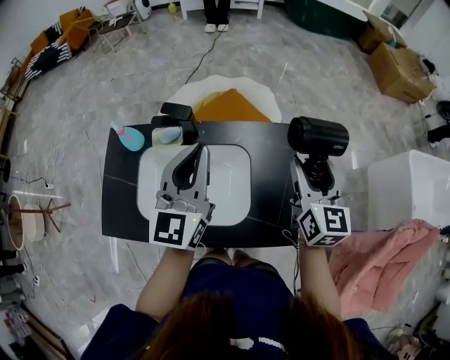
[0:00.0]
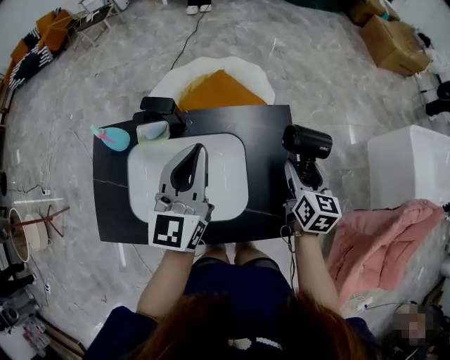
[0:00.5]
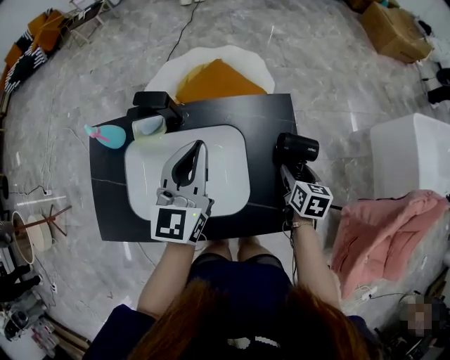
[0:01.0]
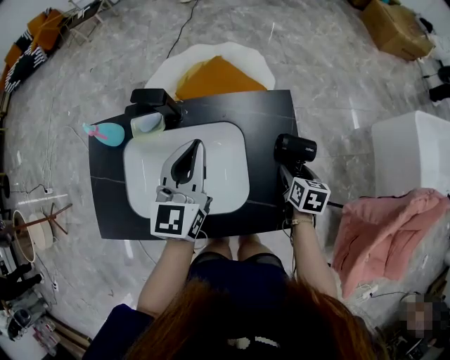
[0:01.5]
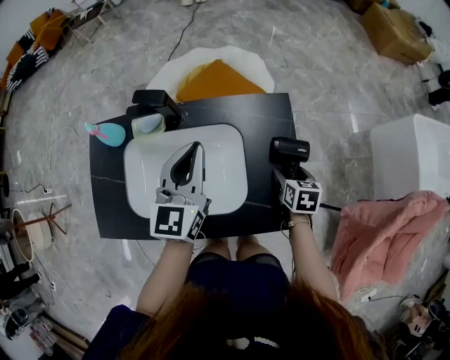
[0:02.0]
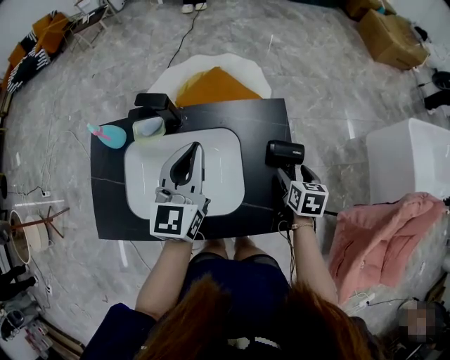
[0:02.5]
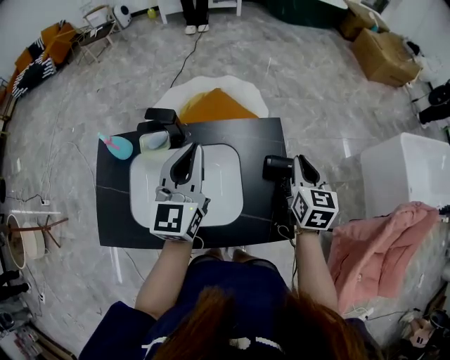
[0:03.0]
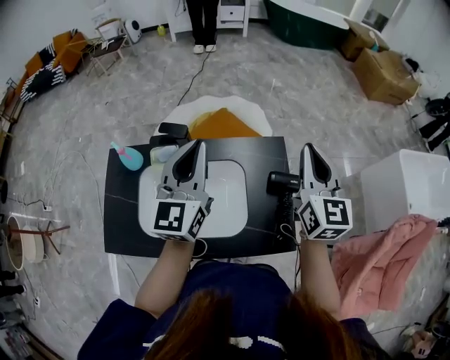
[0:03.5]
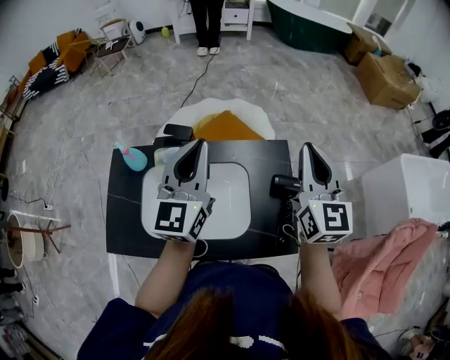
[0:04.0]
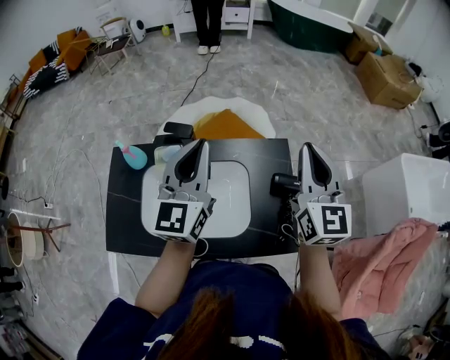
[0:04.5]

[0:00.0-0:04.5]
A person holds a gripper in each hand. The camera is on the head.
0:00.0 to 0:02.0: The right gripper is displaced downward by approximately 30 cm, and angles its fingers downward, by some 40 degrees. Meanwhile the left gripper travels downward by approximately 10 cm.
0:02.0 to 0:04.5: The left gripper is displaced upward by about 15 cm. Meanwhile the right gripper heads upward, covering some 40 cm, tips its fingers upward by about 60 degrees, and closes up.

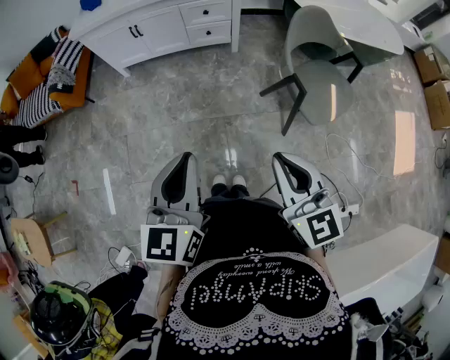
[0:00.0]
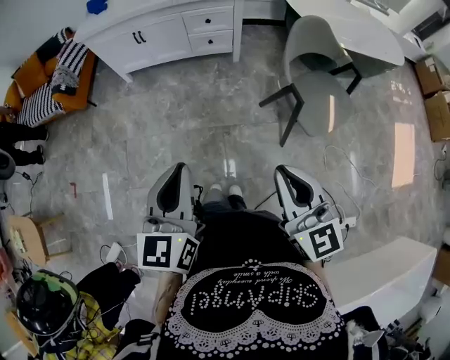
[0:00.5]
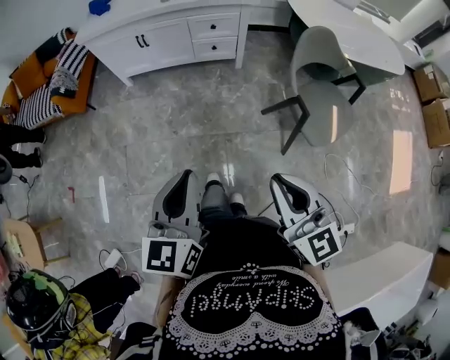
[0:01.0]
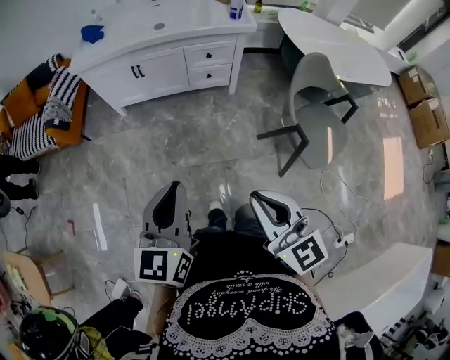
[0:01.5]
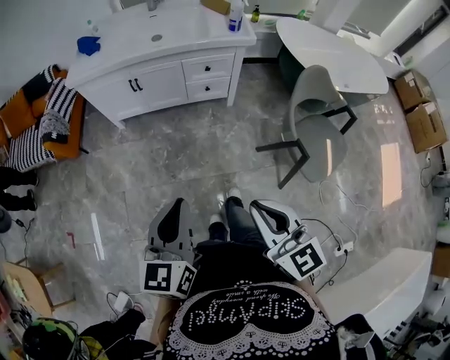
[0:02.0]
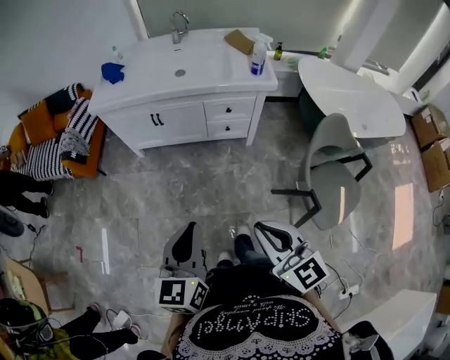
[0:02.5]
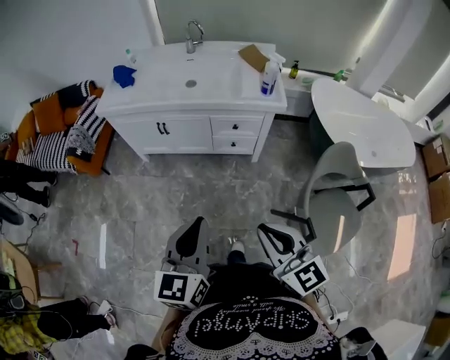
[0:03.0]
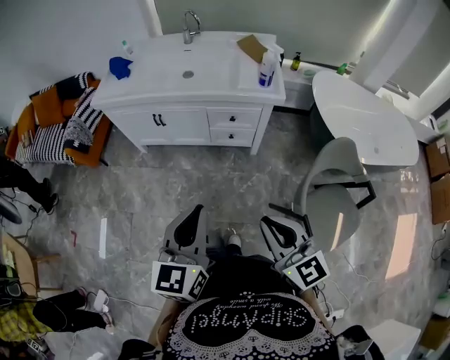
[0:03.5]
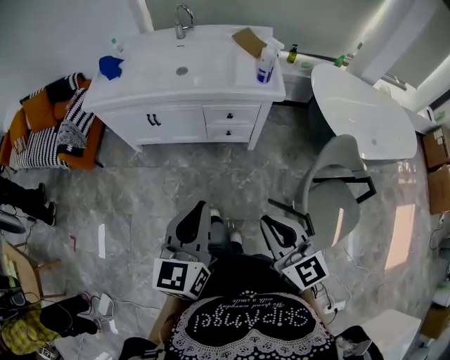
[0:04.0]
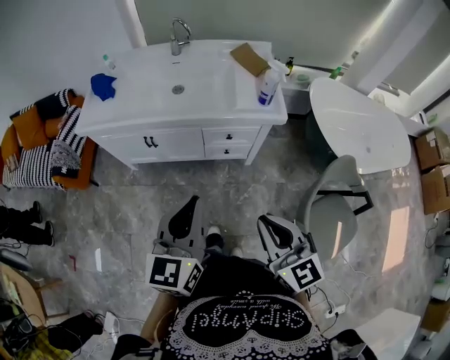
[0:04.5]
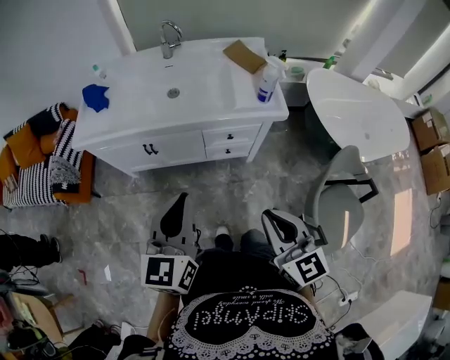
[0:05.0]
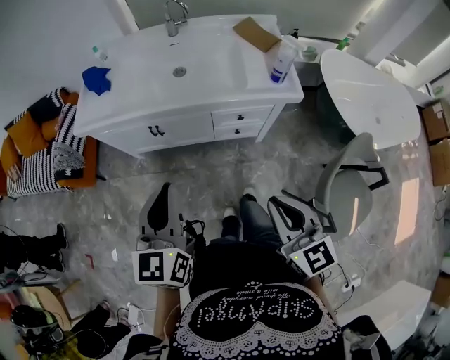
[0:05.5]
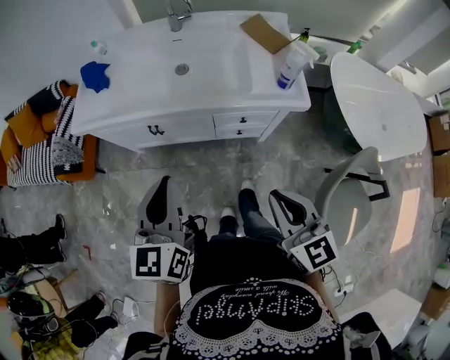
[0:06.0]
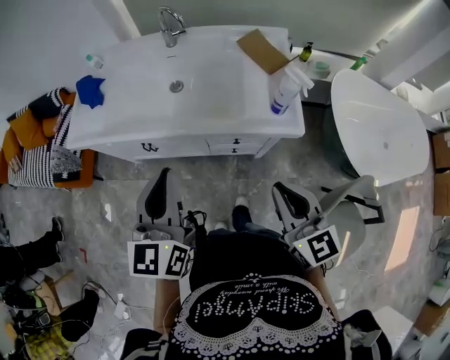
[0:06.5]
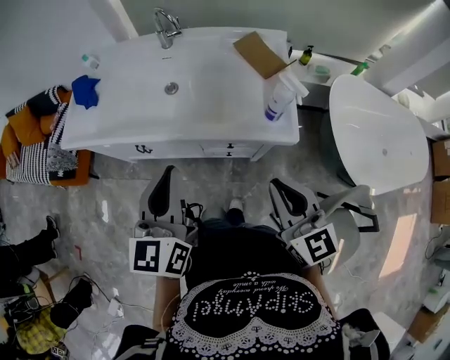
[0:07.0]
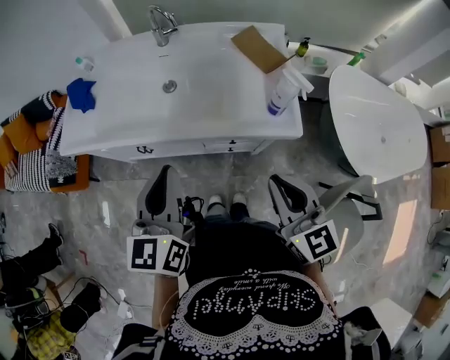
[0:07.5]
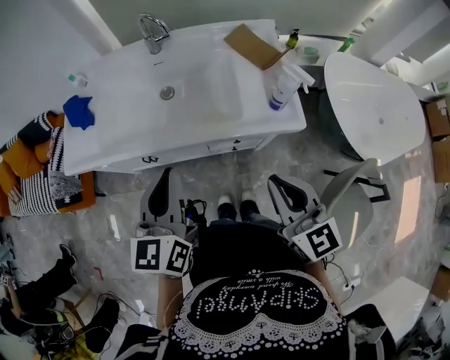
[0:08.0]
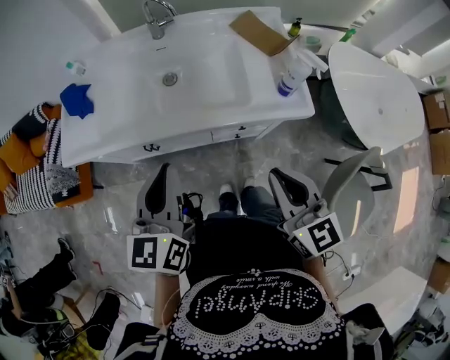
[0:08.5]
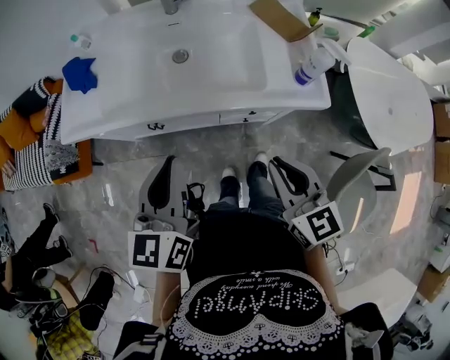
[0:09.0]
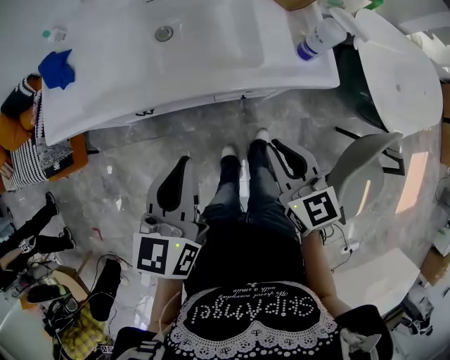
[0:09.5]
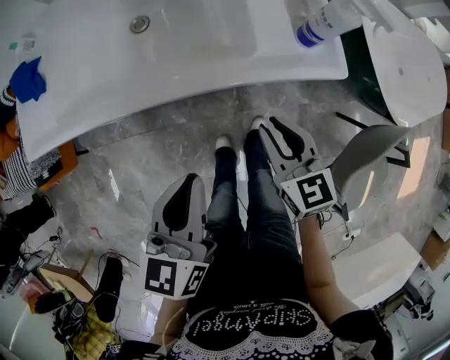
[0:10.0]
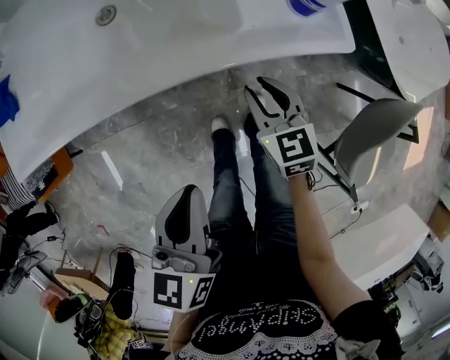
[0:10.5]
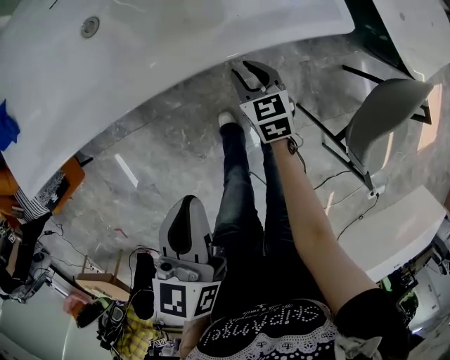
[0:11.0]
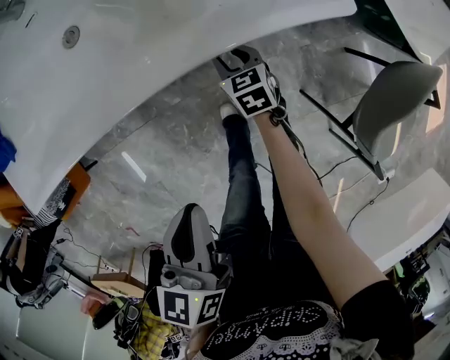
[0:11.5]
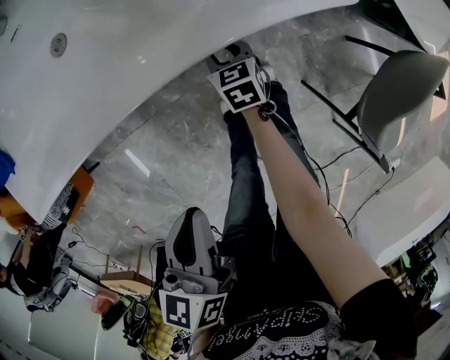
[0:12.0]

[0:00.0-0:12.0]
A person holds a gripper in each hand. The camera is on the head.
0:00.0 to 0:02.0: The two grippers go roughly 15 cm forward and to the left.
0:02.0 to 0:04.0: The grippers both shift forward and to the right by approximately 20 cm.
0:04.0 to 0:06.0: The left gripper travels forward and to the left by about 25 cm. Meanwhile the right gripper shifts approximately 20 cm forward.
0:06.0 to 0:08.0: The left gripper heads forward and to the right, covering approximately 15 cm. The right gripper travels forward by about 15 cm.
0:08.0 to 0:10.0: The grippers both shift downward by about 15 cm. The left gripper turns by about 20 degrees.
0:10.0 to 0:12.0: The right gripper moves downward, some 30 cm, and turns by some 20 degrees. The left gripper shifts approximately 10 cm downward.

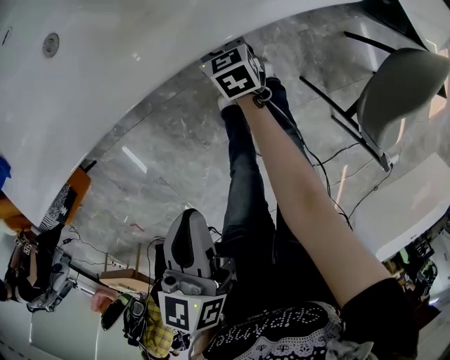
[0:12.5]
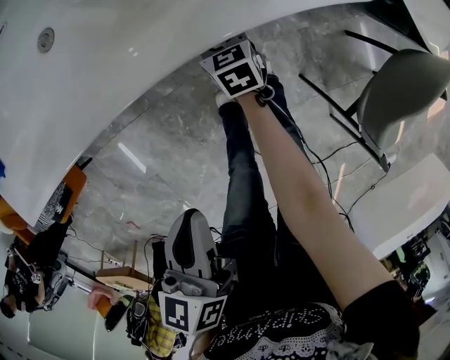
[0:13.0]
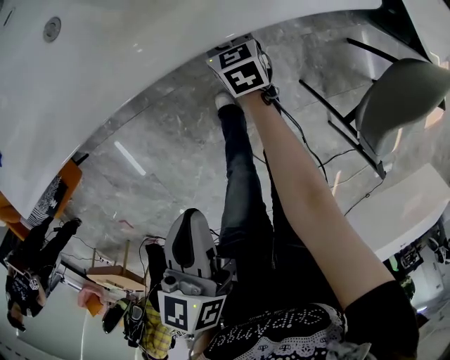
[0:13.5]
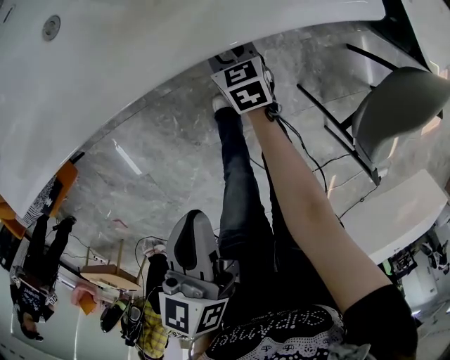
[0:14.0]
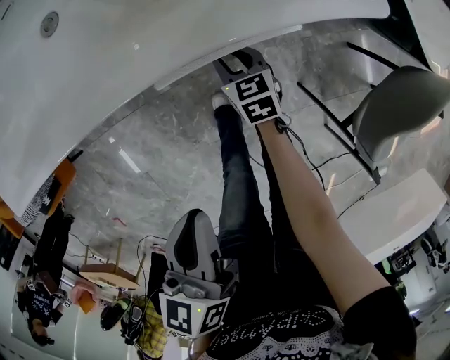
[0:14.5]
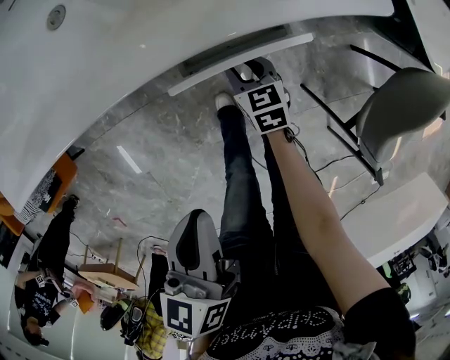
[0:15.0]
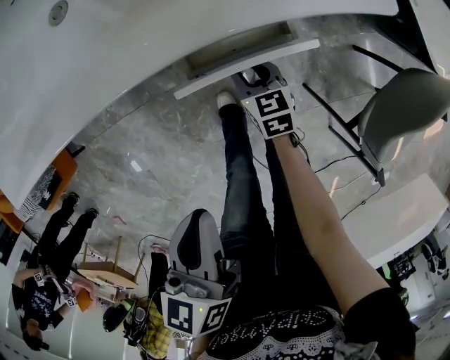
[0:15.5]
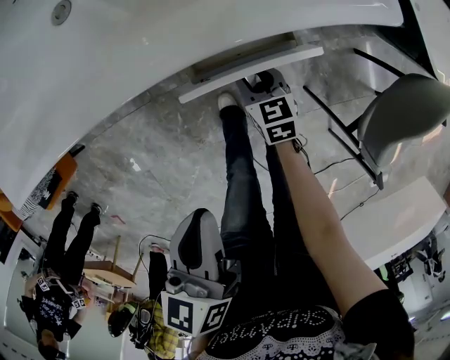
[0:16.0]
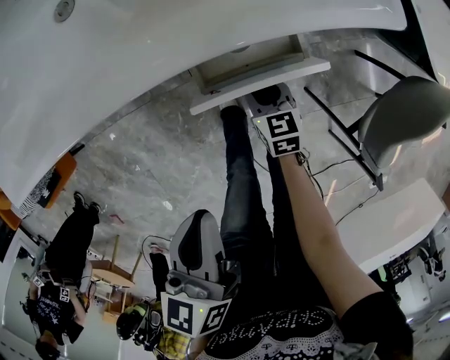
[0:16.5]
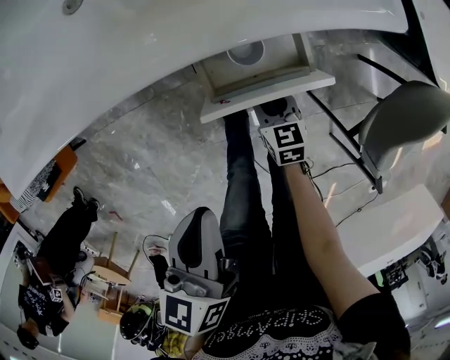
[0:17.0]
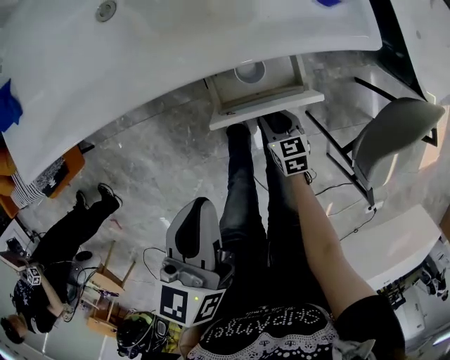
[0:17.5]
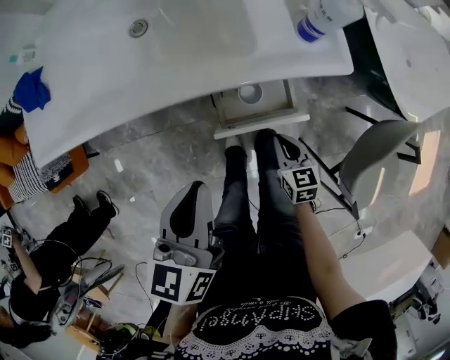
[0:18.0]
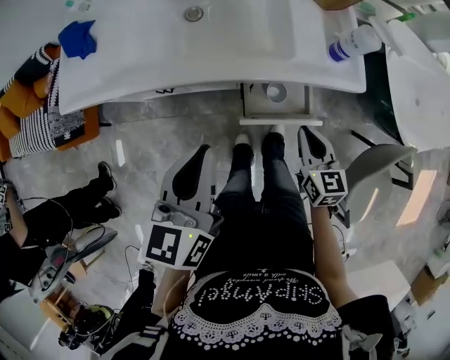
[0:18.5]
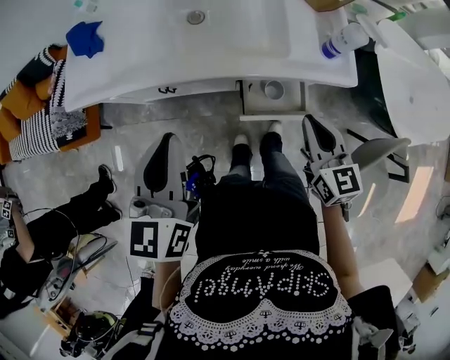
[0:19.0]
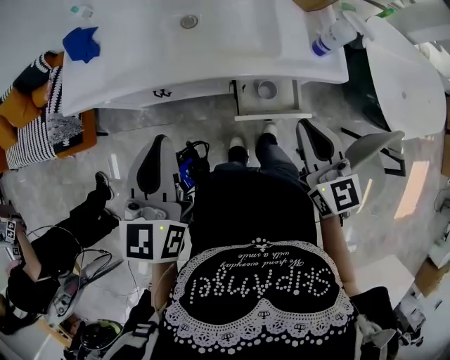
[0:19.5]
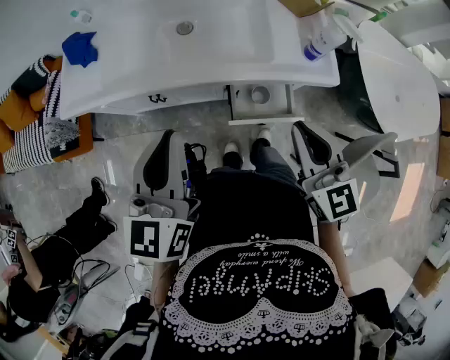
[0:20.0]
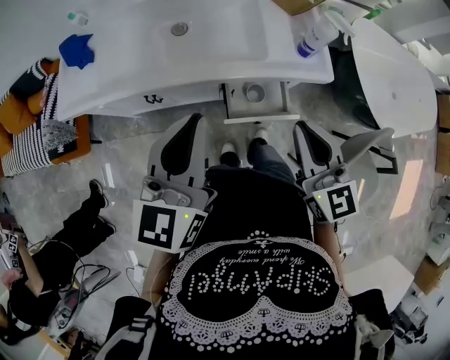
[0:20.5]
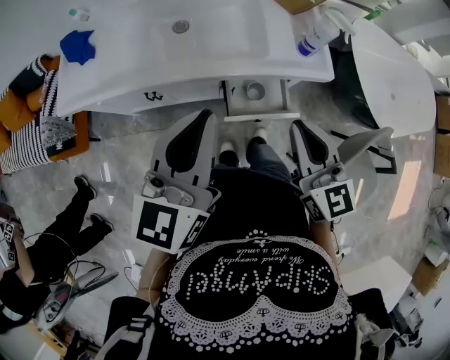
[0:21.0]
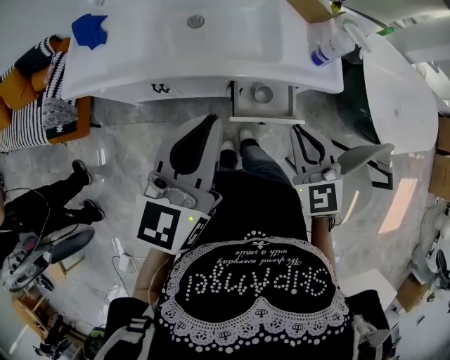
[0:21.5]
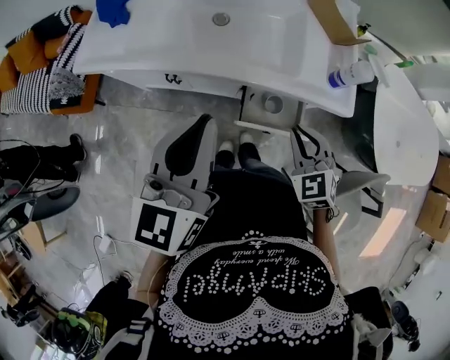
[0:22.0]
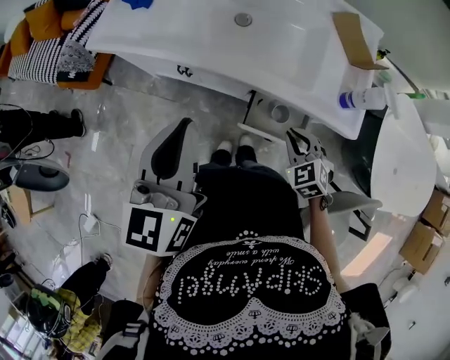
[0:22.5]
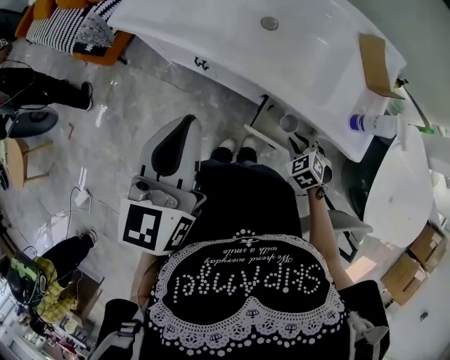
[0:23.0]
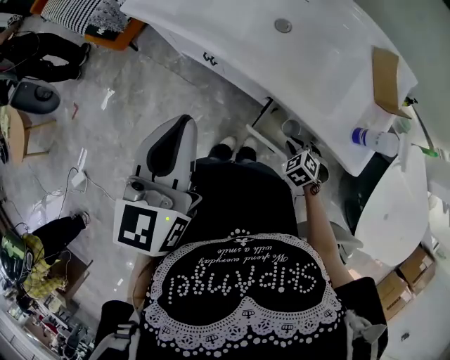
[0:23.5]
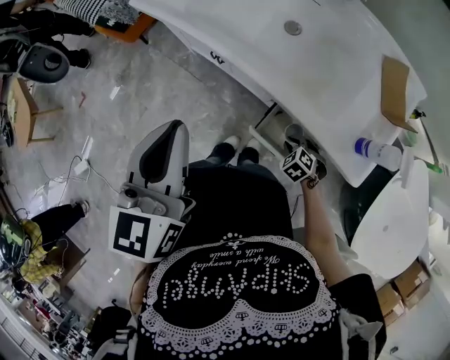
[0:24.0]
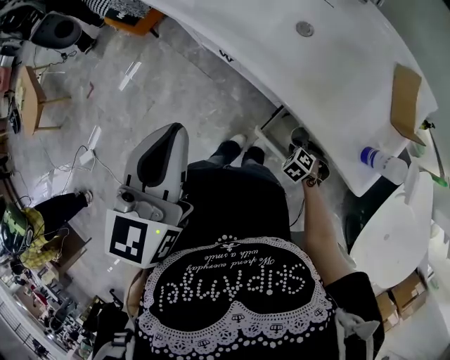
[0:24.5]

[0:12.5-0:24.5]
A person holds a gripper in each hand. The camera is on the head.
0:12.5 to 0:14.5: The right gripper shifts some 5 cm backward.
0:14.5 to 0:16.5: The right gripper travels backward by approximately 5 cm.
0:16.5 to 0:18.5: The left gripper goes approximately 15 cm upward, and swivels roughly 20 degrees. The right gripper travels upward by roughly 25 cm, and closes its fingers.
0:18.5 to 0:20.5: The left gripper travels upward by roughly 10 cm, and travels to the left and back again, approximately 5 cm each way. The right gripper shifts about 20 cm upward, and turns by about 20 degrees.
0:20.5 to 0:22.5: The left gripper changes place by approximately 5 cm, and swivels roughly 30 degrees, while the right gripper travels downward by roughly 20 cm, and tilts its fingers roughly 40 degrees downward.
0:22.5 to 0:24.5: The right gripper moves downward, some 25 cm, and rotates some 40 degrees, while the left gripper changes its angle by roughly 20 degrees.
